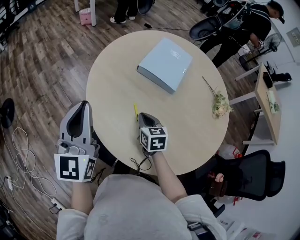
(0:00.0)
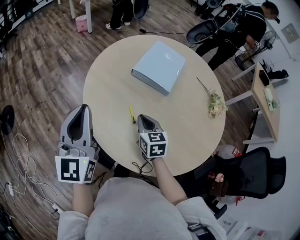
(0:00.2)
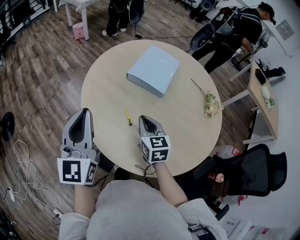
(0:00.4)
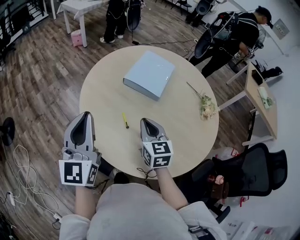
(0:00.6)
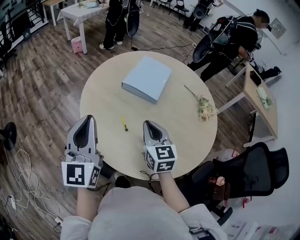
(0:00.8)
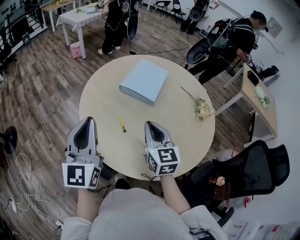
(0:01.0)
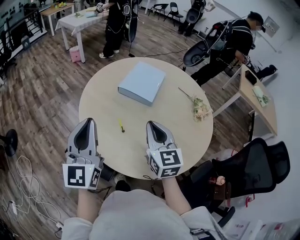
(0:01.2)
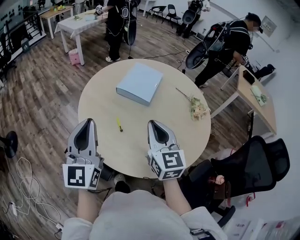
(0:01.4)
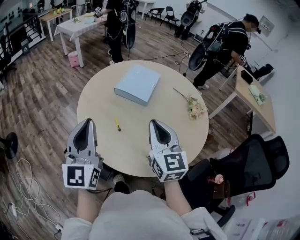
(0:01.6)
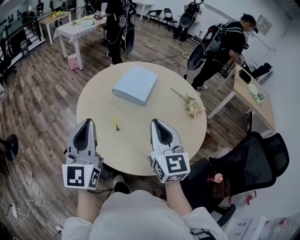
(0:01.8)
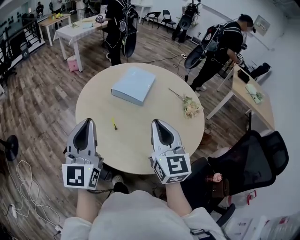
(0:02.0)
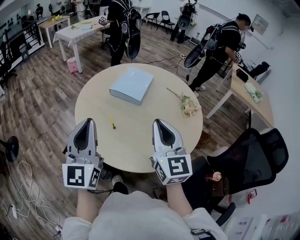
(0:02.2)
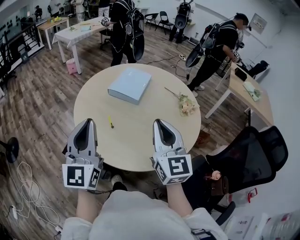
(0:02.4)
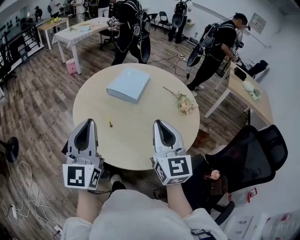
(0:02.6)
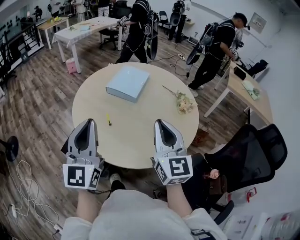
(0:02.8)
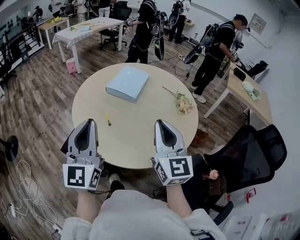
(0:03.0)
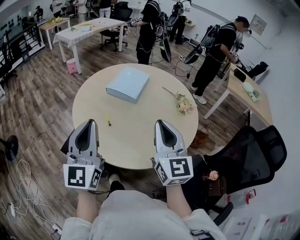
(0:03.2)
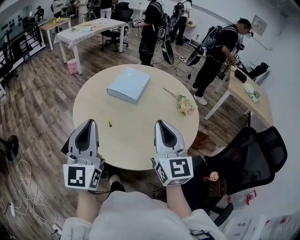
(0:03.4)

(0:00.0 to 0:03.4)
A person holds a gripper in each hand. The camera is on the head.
0:00.0 - 0:01.6: The left gripper is displaced backward, to the right and upward by about 20 cm. Meanwhile the right gripper is displaced upward, backward and to the right by approximately 35 cm, and tips its fingers upward by about 30 degrees.
0:01.6 - 0:03.4: The grippers both shift backward and to the right by about 10 cm.

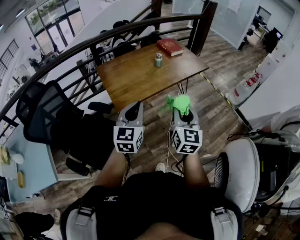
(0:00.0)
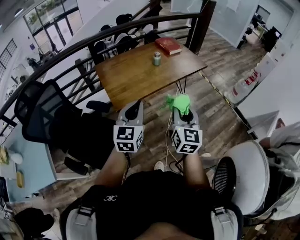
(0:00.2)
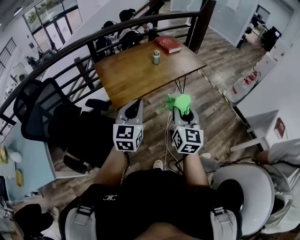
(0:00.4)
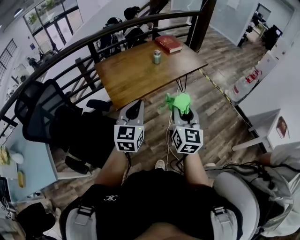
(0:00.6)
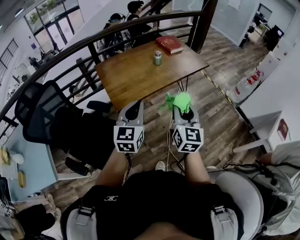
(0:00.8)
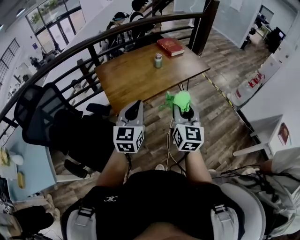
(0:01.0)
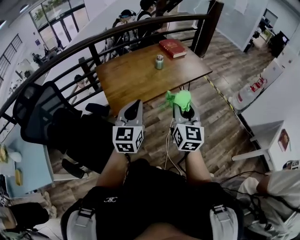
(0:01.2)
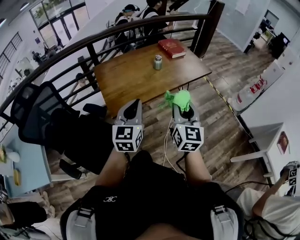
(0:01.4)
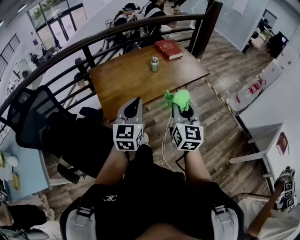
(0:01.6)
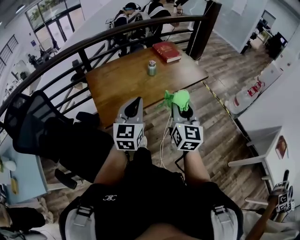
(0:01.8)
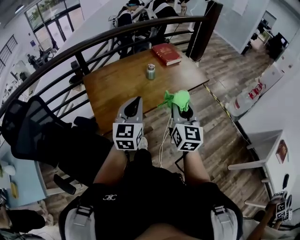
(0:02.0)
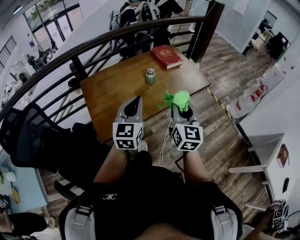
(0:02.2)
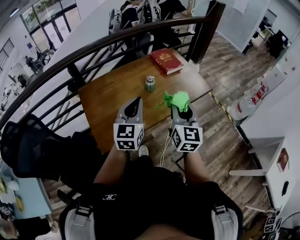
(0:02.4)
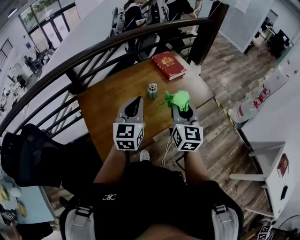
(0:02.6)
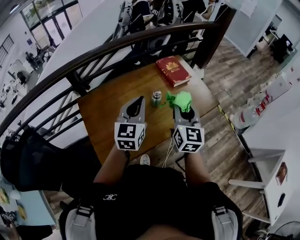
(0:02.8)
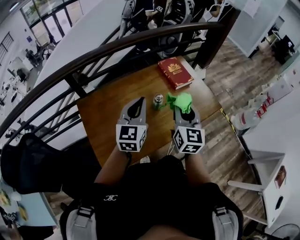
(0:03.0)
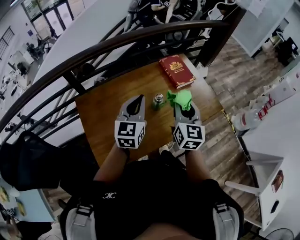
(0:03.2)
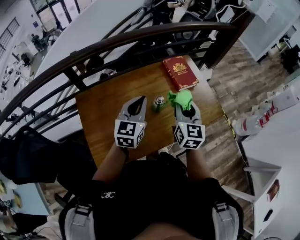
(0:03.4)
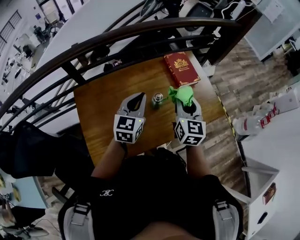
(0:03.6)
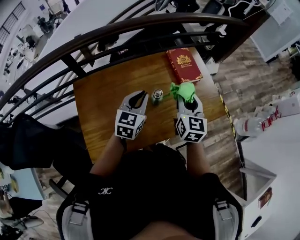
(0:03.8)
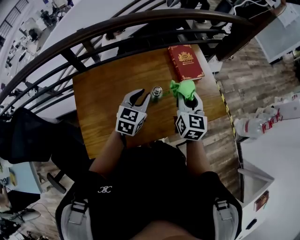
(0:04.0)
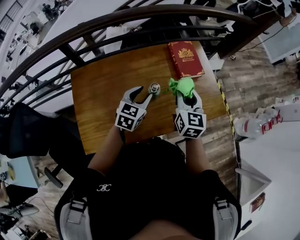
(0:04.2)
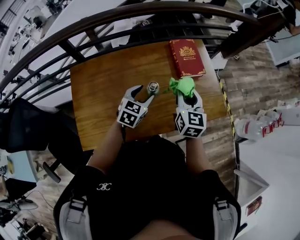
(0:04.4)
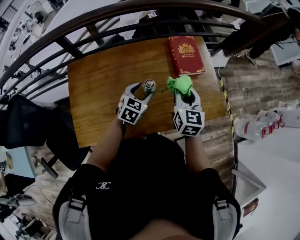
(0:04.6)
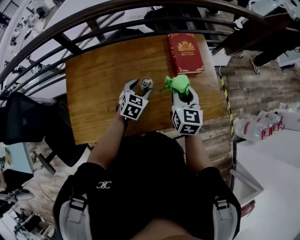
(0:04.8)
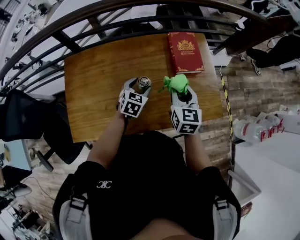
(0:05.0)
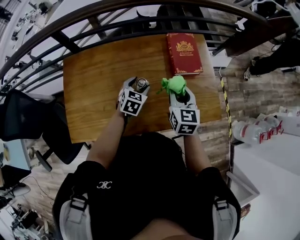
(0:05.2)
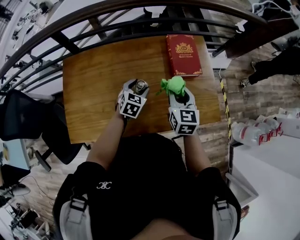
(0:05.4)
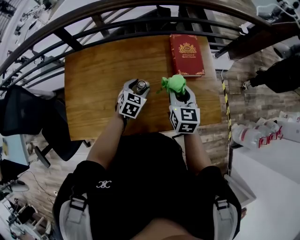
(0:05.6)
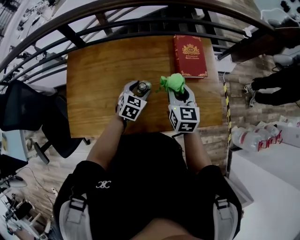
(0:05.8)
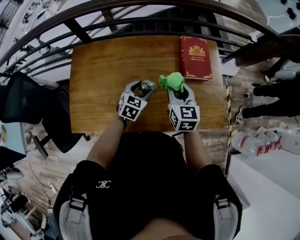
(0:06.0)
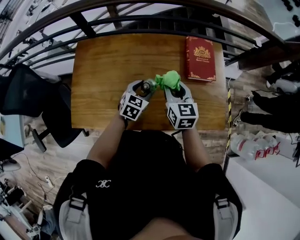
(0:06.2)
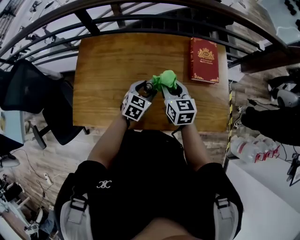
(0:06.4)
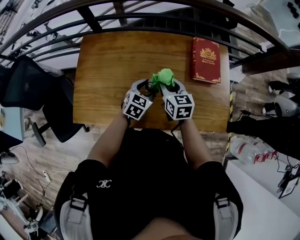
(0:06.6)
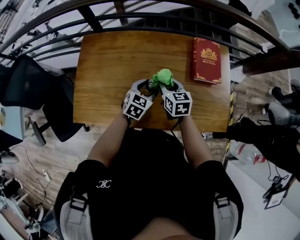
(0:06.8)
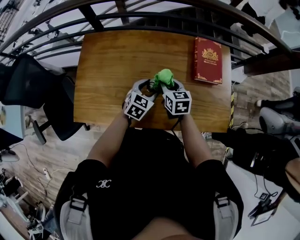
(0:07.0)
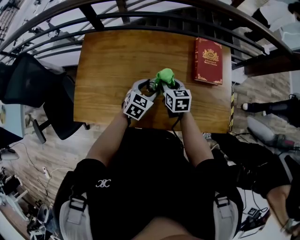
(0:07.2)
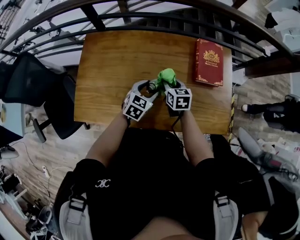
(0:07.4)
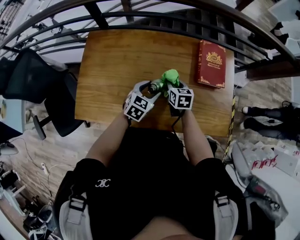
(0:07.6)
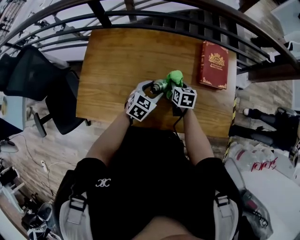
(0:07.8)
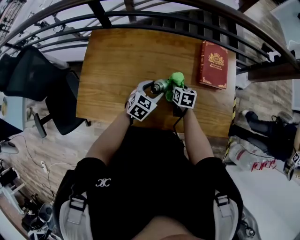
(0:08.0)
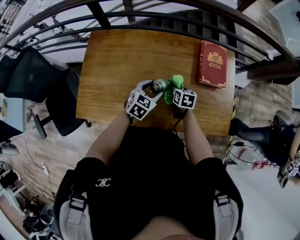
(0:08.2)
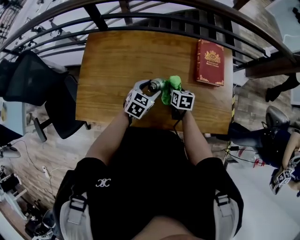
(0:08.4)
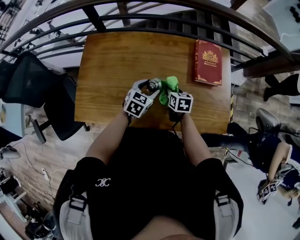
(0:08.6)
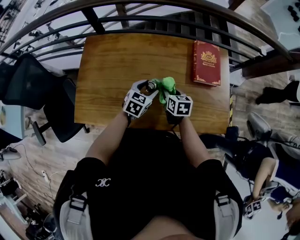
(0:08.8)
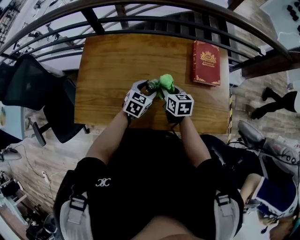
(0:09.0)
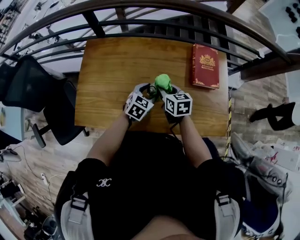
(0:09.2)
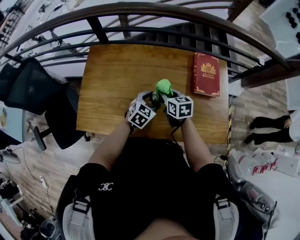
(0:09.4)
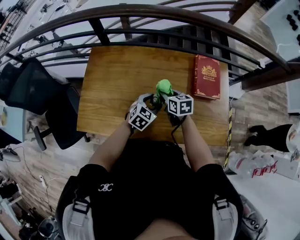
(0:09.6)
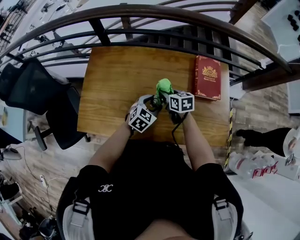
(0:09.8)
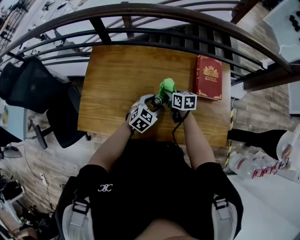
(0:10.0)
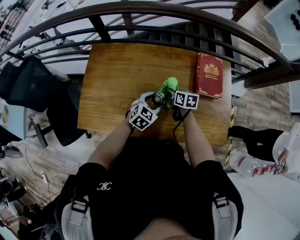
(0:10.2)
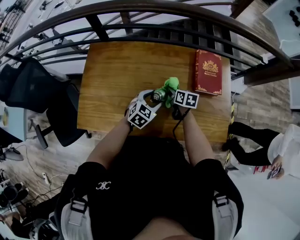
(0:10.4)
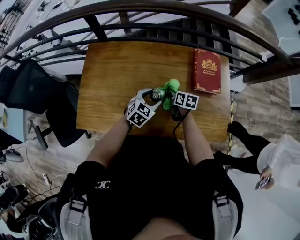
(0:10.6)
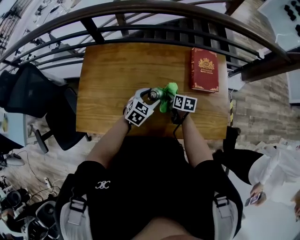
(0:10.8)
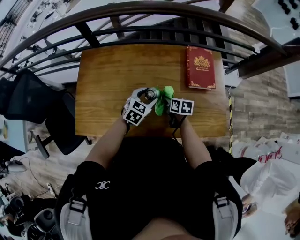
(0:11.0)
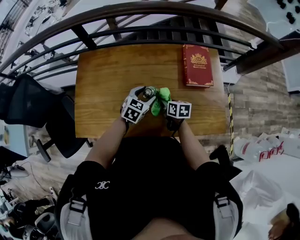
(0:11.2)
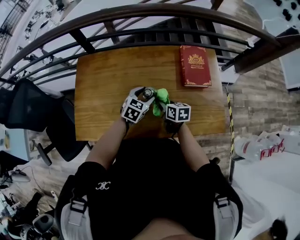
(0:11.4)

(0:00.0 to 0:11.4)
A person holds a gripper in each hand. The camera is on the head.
0:00.0 - 0:01.4: The two grippers go approximately 10 cm forward.
0:01.4 - 0:02.8: Both grippers move forward, roughly 40 cm.
0:02.8 - 0:04.2: The right gripper goes approximately 20 cm forward and downward. The left gripper heads downward and forward, covering about 20 cm, swivels roughly 20 degrees, and opens.
0:04.2 - 0:05.6: The grippers both shift downward by some 10 cm. The left gripper opens up.
0:05.6 - 0:07.2: The right gripper moves to the left and downward, approximately 15 cm, and swivels roughly 30 degrees.
0:07.2 - 0:08.6: The right gripper goes some 5 cm downward.
0:08.6 - 0:10.0: The right gripper shifts roughly 5 cm forward, and moves approximately 10 cm upward and comes back.
0:10.0 - 0:11.4: The right gripper shifts roughly 10 cm backward.

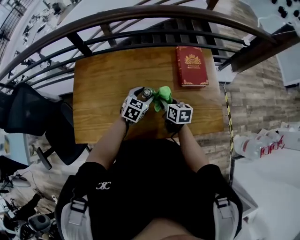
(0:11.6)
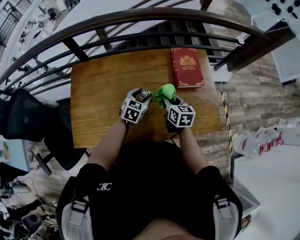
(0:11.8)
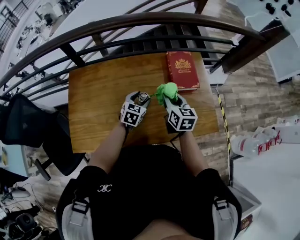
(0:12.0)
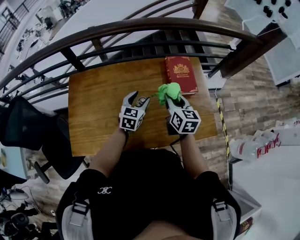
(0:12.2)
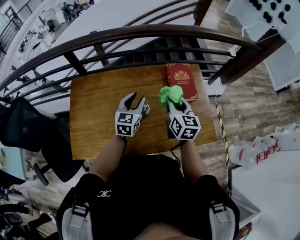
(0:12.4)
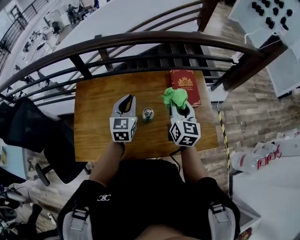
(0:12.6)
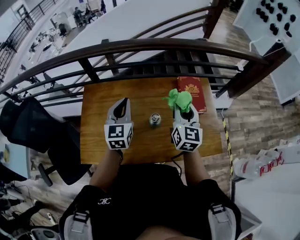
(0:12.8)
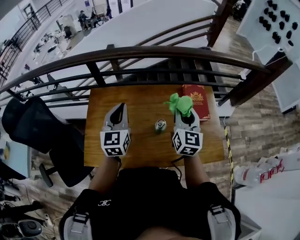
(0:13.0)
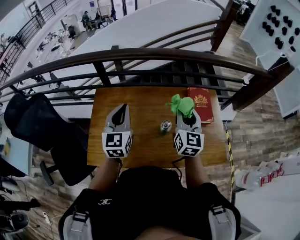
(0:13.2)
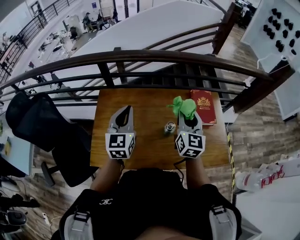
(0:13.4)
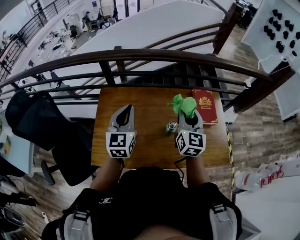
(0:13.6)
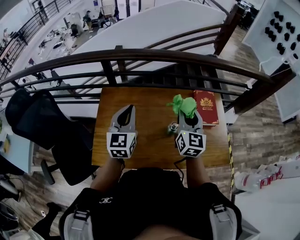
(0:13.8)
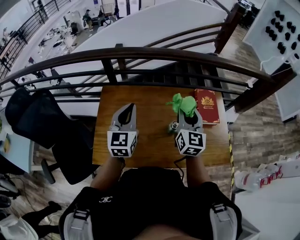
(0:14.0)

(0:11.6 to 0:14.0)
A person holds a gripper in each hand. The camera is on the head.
0:11.6 - 0:12.8: The right gripper moves upward, approximately 25 cm, and rotates some 40 degrees, while the left gripper goes about 25 cm upward and to the left, changes its angle by roughly 40 degrees, and closes.
0:12.8 - 0:14.0: The grippers both shift to the left by some 10 cm.

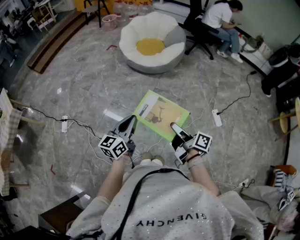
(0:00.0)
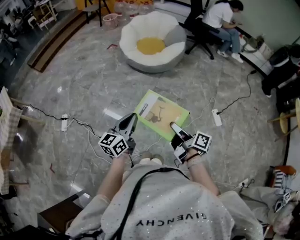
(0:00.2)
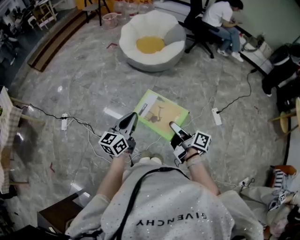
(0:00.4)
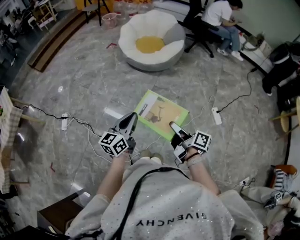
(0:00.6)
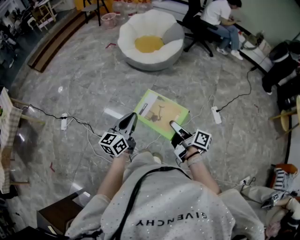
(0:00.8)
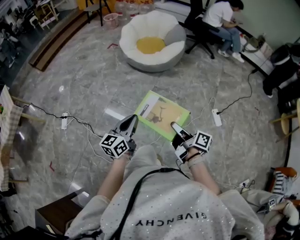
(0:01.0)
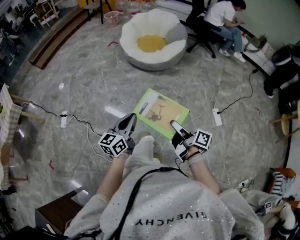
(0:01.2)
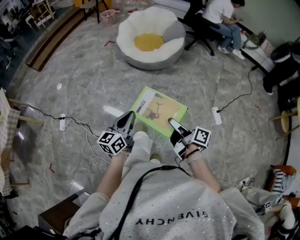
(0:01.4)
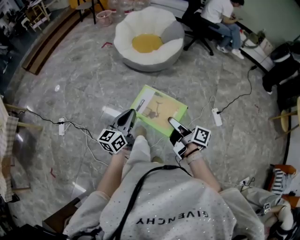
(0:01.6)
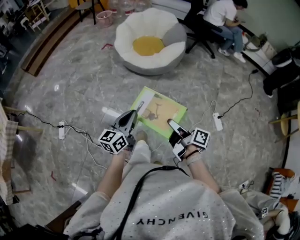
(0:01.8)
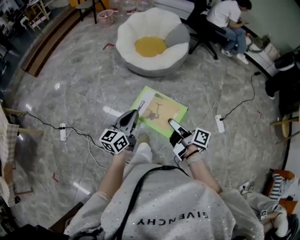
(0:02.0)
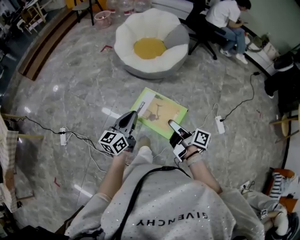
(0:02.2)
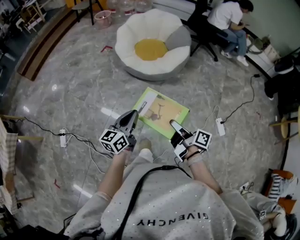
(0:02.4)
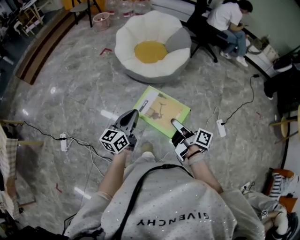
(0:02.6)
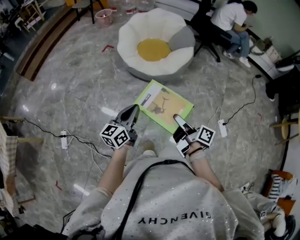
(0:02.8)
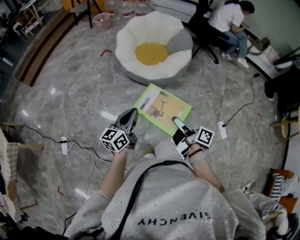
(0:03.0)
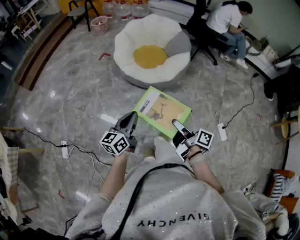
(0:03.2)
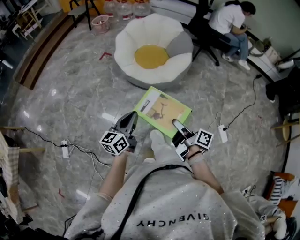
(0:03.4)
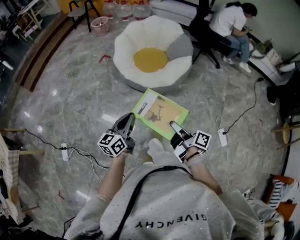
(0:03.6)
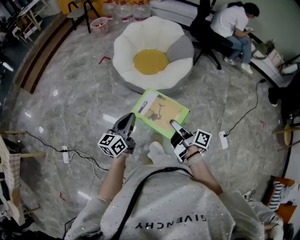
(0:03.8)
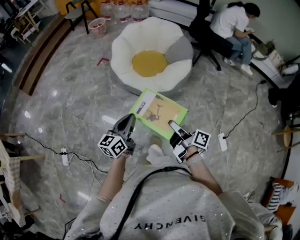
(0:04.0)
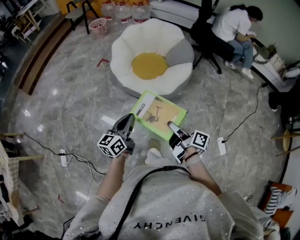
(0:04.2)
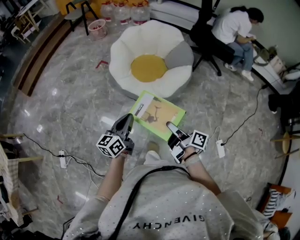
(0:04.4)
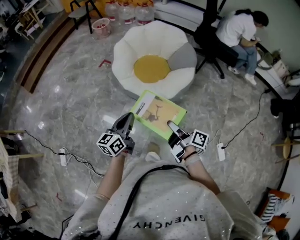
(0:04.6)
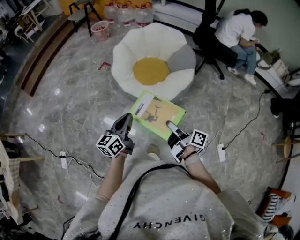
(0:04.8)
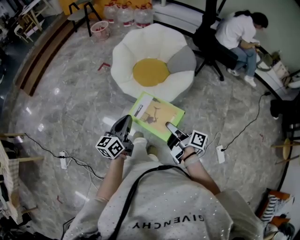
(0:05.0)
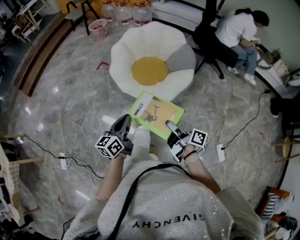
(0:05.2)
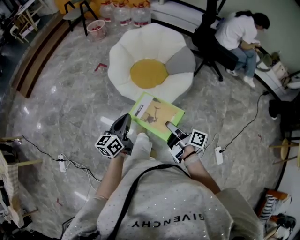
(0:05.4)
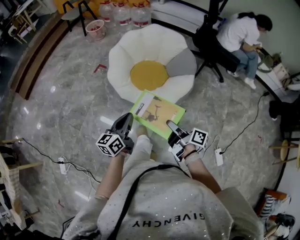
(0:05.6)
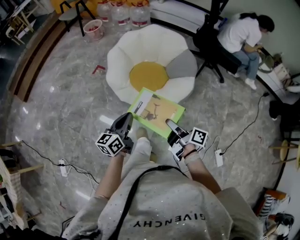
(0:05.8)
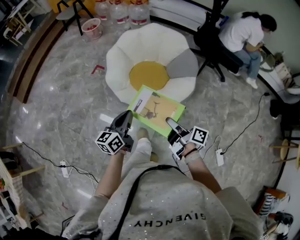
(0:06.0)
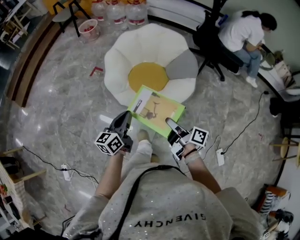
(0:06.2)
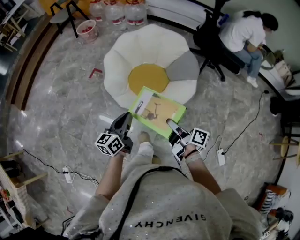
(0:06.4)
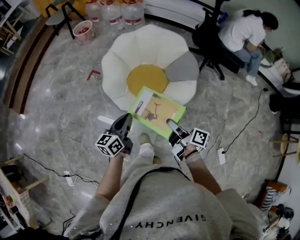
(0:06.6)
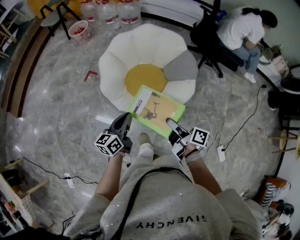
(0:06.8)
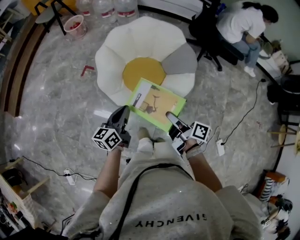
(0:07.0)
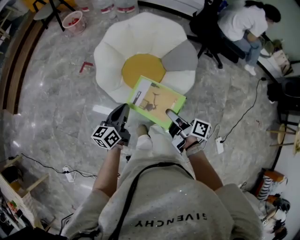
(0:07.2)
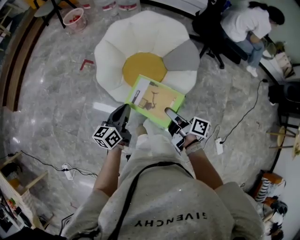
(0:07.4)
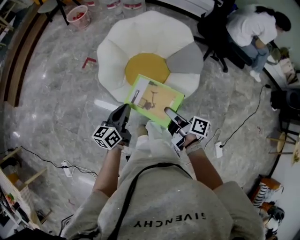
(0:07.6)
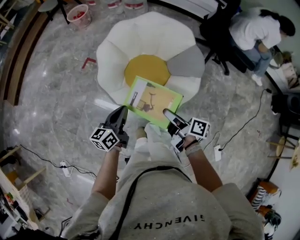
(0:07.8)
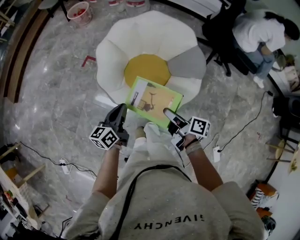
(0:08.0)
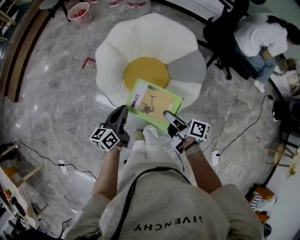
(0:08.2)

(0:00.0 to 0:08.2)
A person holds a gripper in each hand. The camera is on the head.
0:00.0 - 0:01.6: The left gripper changes place by about 10 cm.
0:01.6 - 0:03.2: The left gripper changes place by some 25 cm.
0:03.2 - 0:05.0: The left gripper shifts by about 20 cm.
0:05.0 - 0:06.6: The left gripper shifts by about 25 cm.
0:06.6 - 0:08.2: The left gripper changes place by roughly 10 cm.
